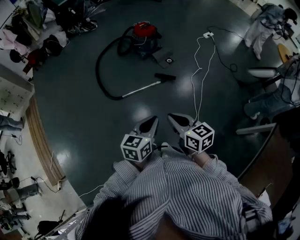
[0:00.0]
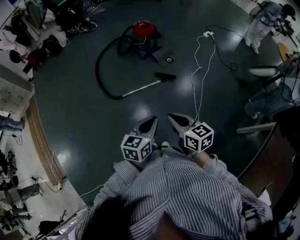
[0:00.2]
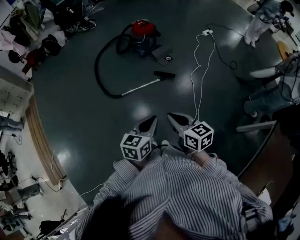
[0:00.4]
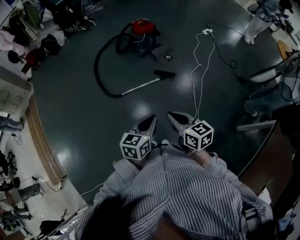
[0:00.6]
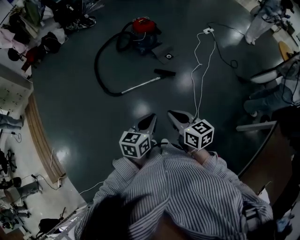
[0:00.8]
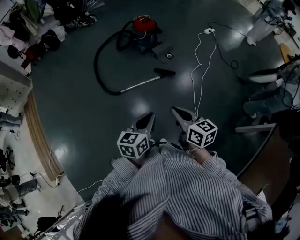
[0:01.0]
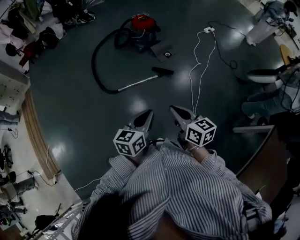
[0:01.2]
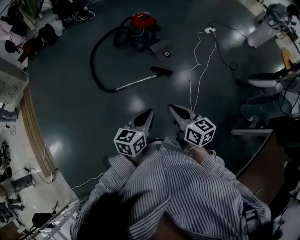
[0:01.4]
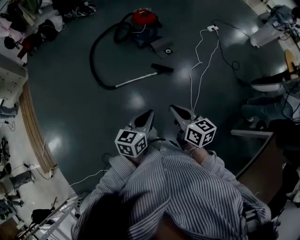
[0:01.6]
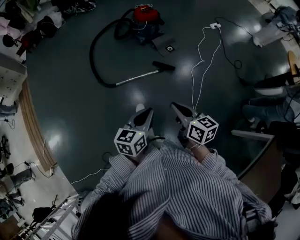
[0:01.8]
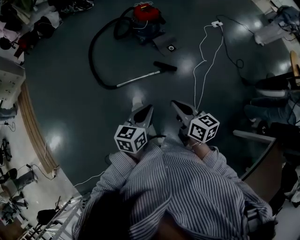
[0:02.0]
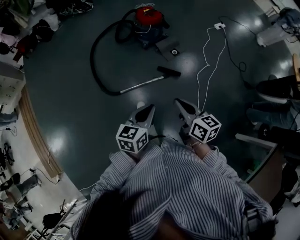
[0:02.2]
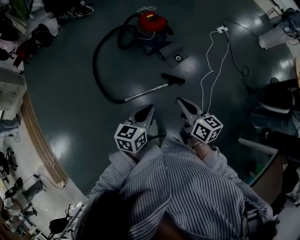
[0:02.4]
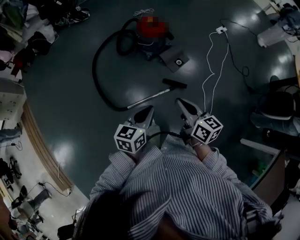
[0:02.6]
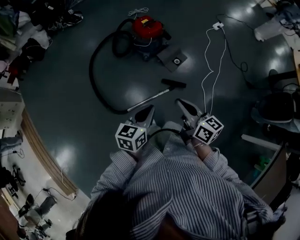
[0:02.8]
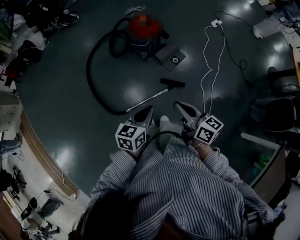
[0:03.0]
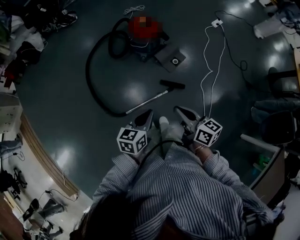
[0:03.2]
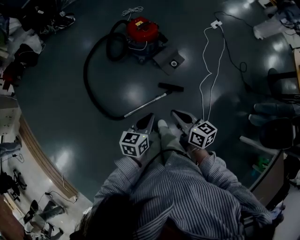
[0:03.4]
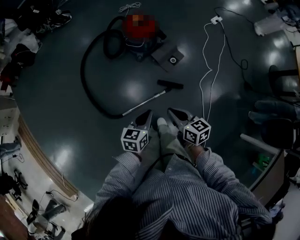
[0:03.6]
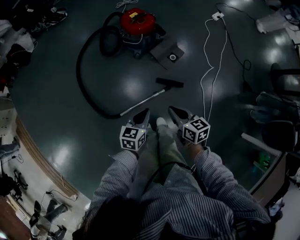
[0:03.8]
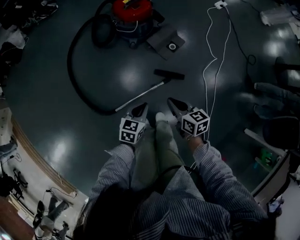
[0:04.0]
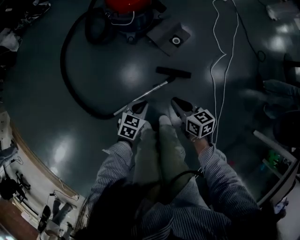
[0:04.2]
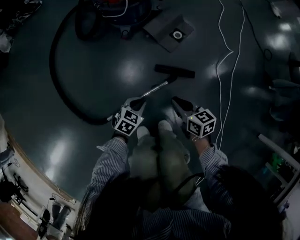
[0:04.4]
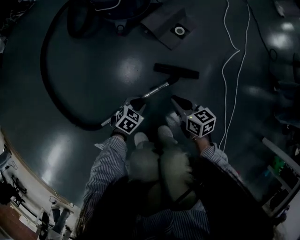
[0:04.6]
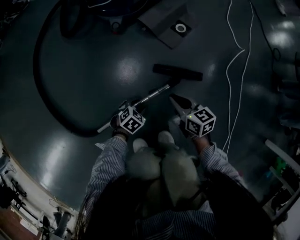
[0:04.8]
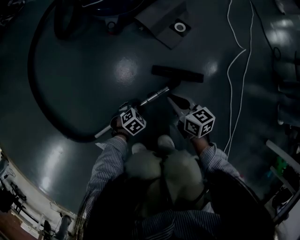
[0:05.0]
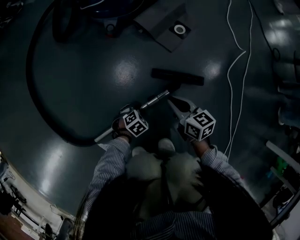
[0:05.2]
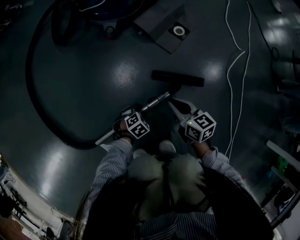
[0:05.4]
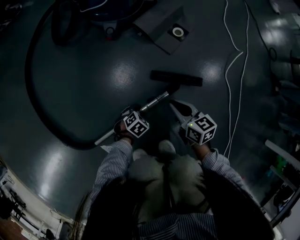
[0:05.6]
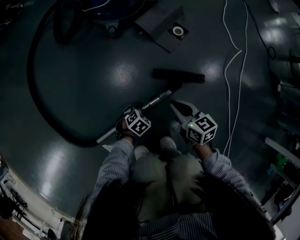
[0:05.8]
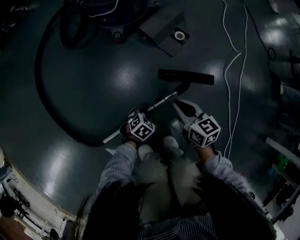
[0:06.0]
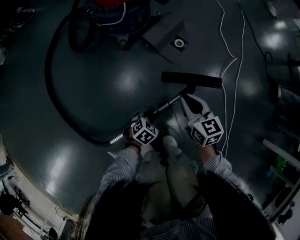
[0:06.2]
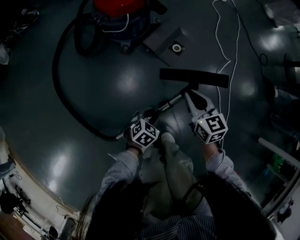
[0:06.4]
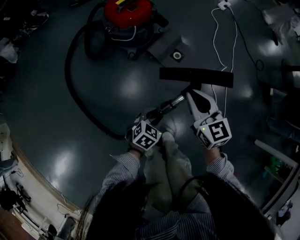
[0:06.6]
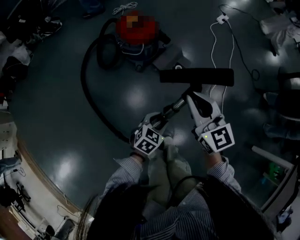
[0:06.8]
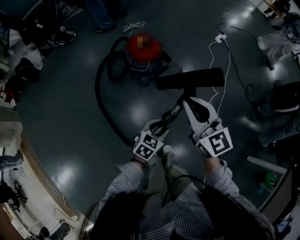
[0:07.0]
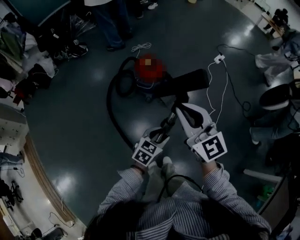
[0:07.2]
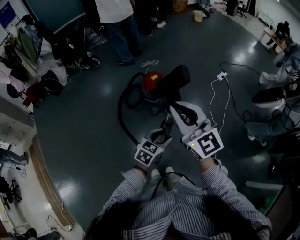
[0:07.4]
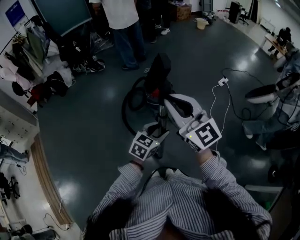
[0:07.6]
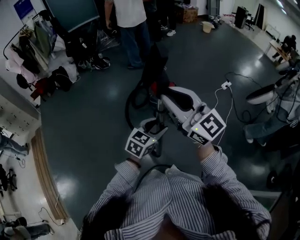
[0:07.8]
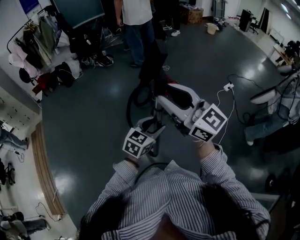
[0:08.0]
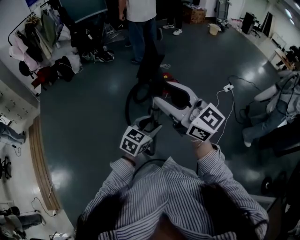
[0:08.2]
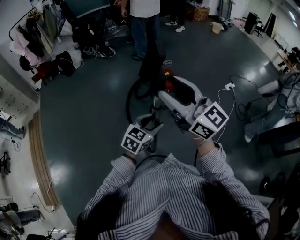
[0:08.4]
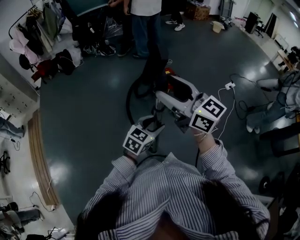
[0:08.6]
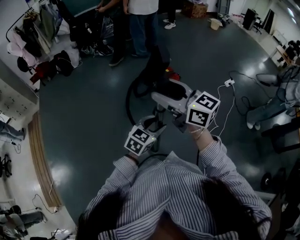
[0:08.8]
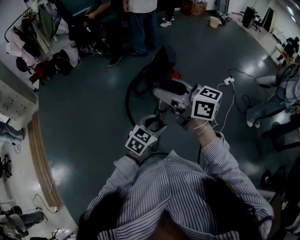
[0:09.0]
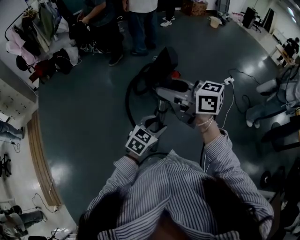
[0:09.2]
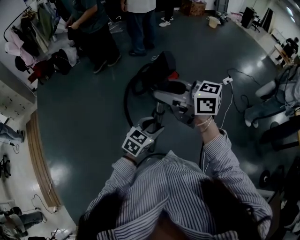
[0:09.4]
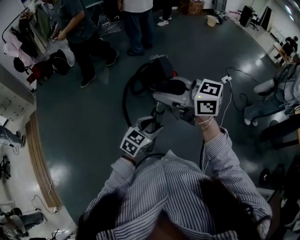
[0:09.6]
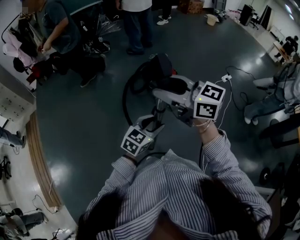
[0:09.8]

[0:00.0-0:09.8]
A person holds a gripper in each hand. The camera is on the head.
0:00.0 to 0:01.4: The left gripper heads forward, covering some 5 cm. Meanwhile the right gripper goes approximately 10 cm forward and to the right.
0:01.4 to 0:02.8: Both grippers travel together forward, approximately 35 cm.
0:02.8 to 0:04.2: The grippers both shift downward by approximately 40 cm. The left gripper changes its angle by roughly 30 degrees. The right gripper changes its angle by some 20 degrees.
0:04.2 to 0:05.6: Both grippers move downward, about 35 cm. The left gripper changes its angle by roughly 30 degrees, and opens its fingers.
0:05.6 to 0:07.0: Both grippers move upward, some 70 cm. The left gripper swivels some 30 degrees, while the right gripper turns by approximately 40 degrees.
0:07.0 to 0:08.4: The two grippers go roughly 30 cm upward. The left gripper rotates roughly 30 degrees, while the right gripper swivels approximately 40 degrees, and opens its fingers.
0:08.4 to 0:09.8: The right gripper turns by roughly 20 degrees.

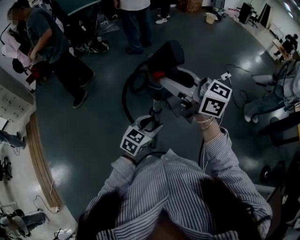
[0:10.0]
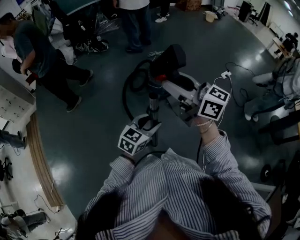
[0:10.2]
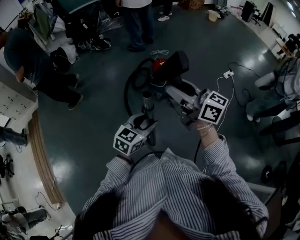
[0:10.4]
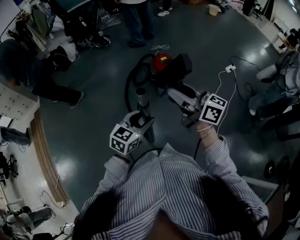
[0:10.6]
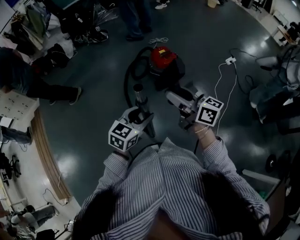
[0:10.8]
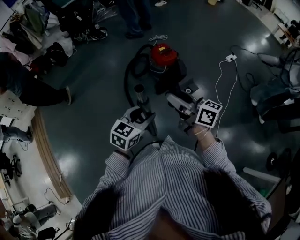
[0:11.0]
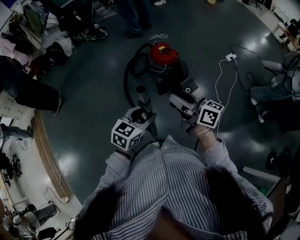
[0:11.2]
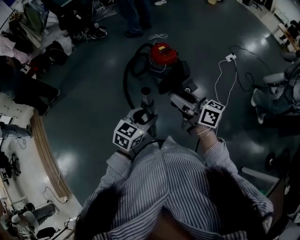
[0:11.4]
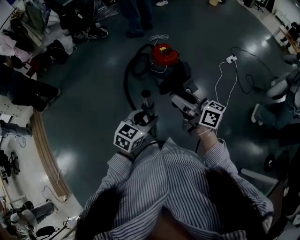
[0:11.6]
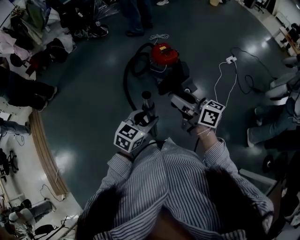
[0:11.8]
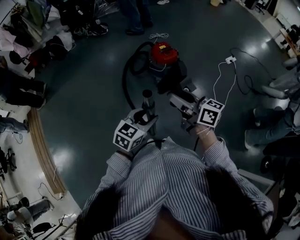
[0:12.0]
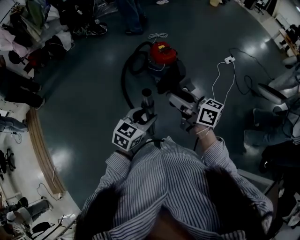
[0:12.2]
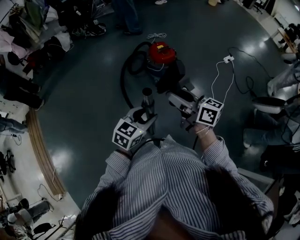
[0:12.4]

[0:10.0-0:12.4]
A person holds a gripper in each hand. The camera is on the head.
0:10.0 to 0:11.2: The right gripper shifts approximately 20 cm downward, and swivels some 30 degrees.
0:11.2 to 0:12.4: The grippers move only a little.

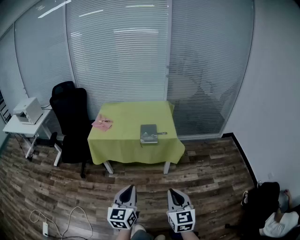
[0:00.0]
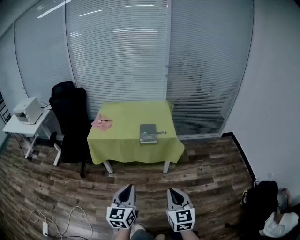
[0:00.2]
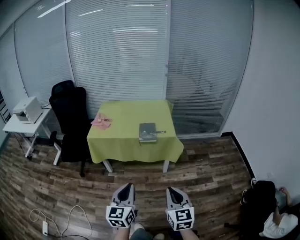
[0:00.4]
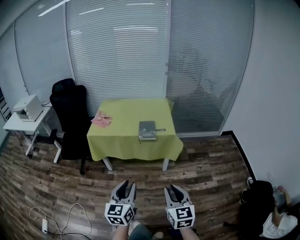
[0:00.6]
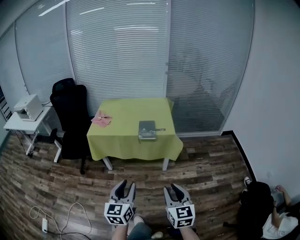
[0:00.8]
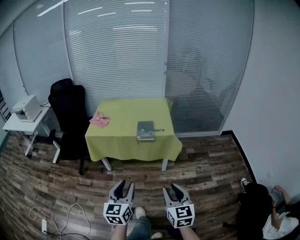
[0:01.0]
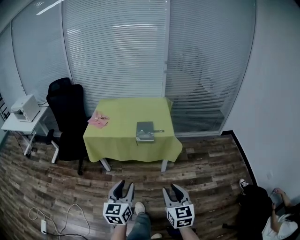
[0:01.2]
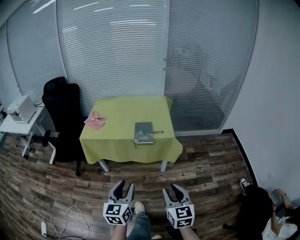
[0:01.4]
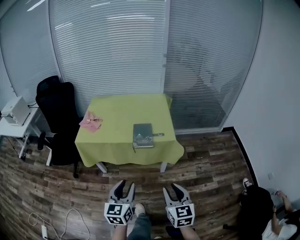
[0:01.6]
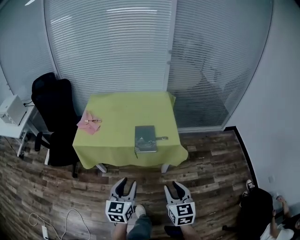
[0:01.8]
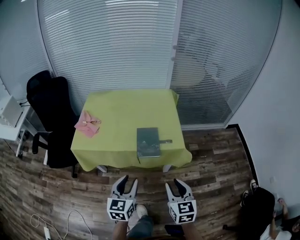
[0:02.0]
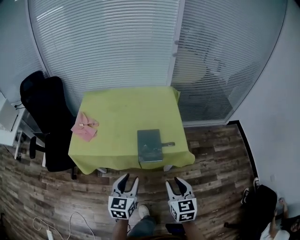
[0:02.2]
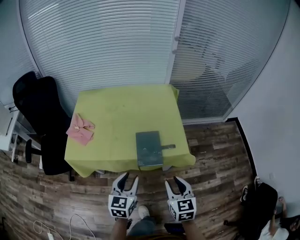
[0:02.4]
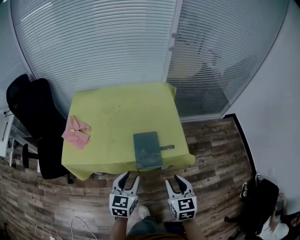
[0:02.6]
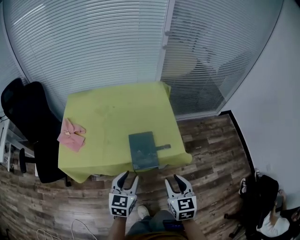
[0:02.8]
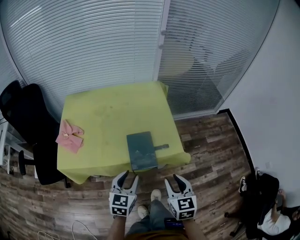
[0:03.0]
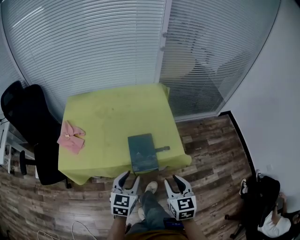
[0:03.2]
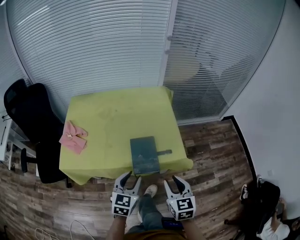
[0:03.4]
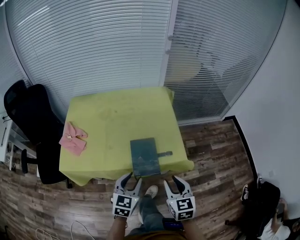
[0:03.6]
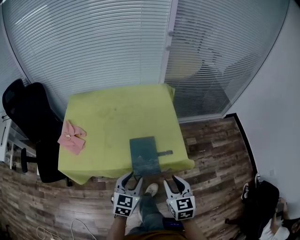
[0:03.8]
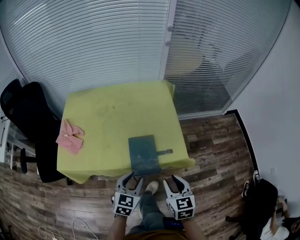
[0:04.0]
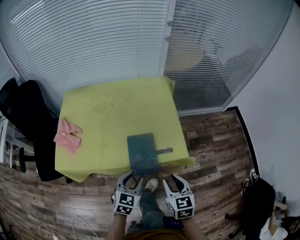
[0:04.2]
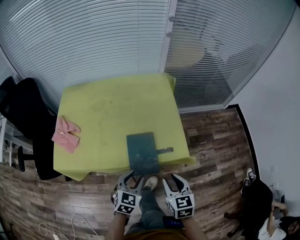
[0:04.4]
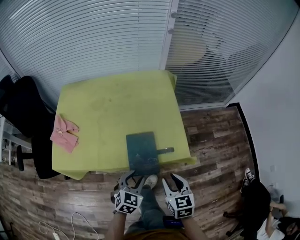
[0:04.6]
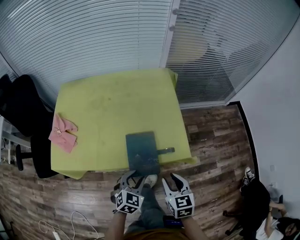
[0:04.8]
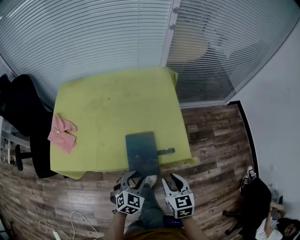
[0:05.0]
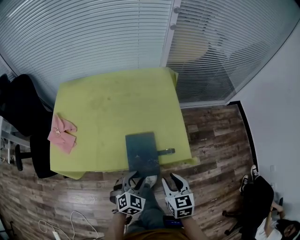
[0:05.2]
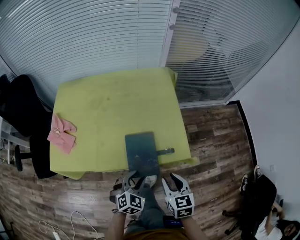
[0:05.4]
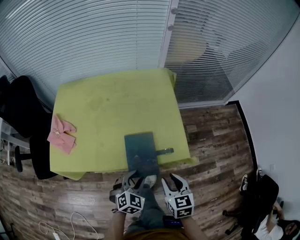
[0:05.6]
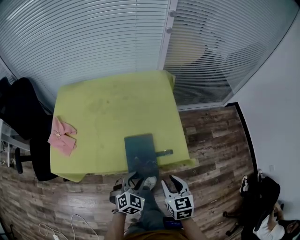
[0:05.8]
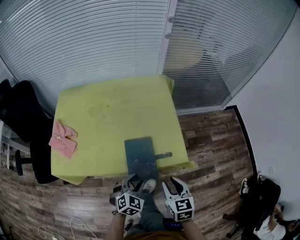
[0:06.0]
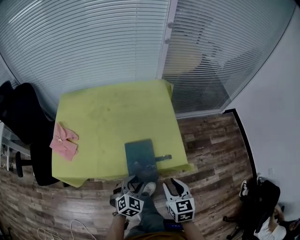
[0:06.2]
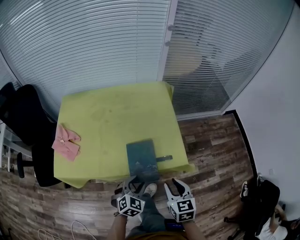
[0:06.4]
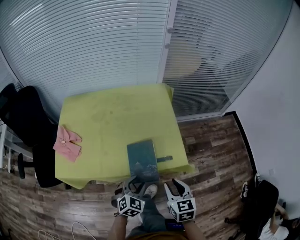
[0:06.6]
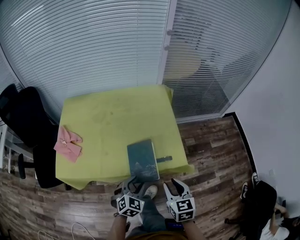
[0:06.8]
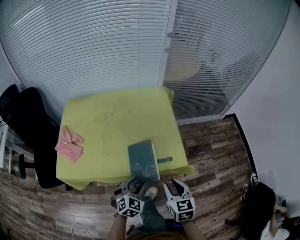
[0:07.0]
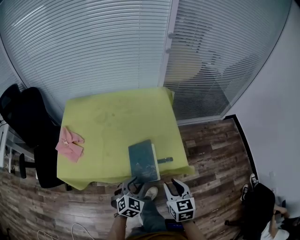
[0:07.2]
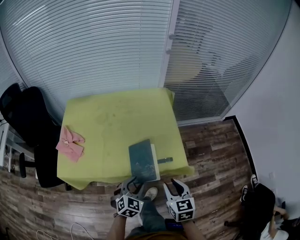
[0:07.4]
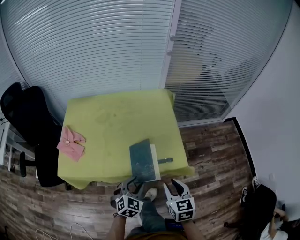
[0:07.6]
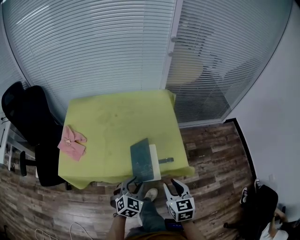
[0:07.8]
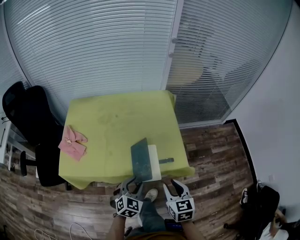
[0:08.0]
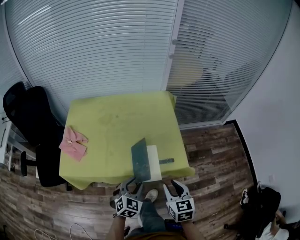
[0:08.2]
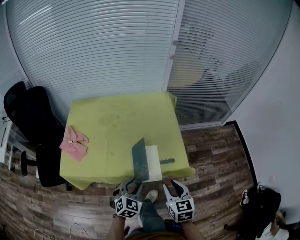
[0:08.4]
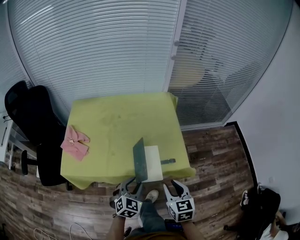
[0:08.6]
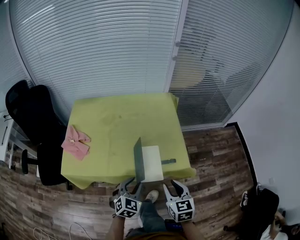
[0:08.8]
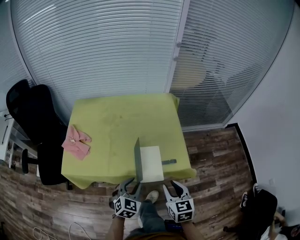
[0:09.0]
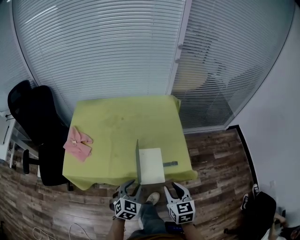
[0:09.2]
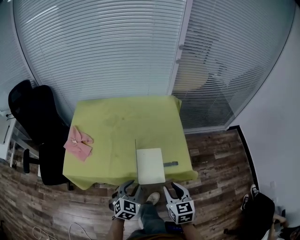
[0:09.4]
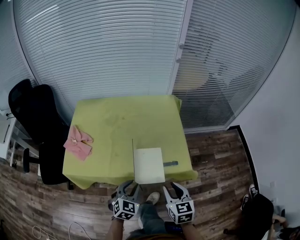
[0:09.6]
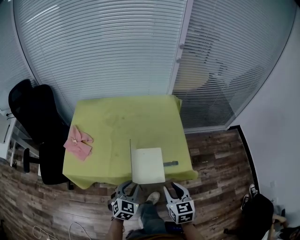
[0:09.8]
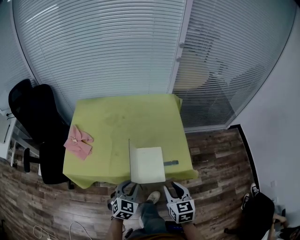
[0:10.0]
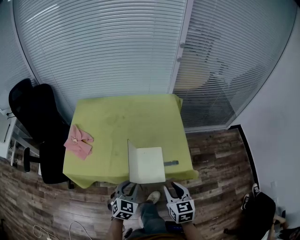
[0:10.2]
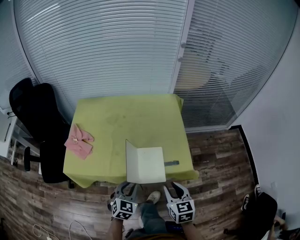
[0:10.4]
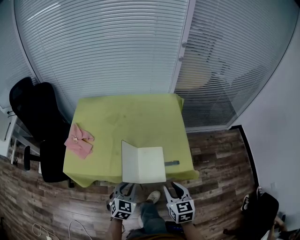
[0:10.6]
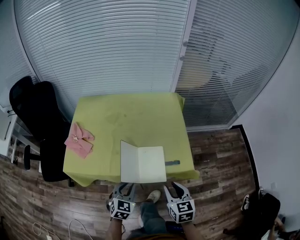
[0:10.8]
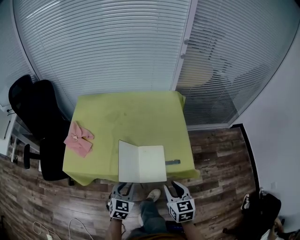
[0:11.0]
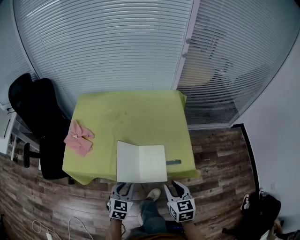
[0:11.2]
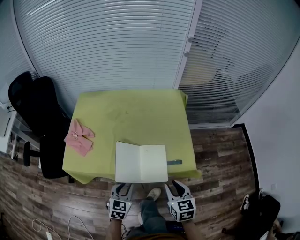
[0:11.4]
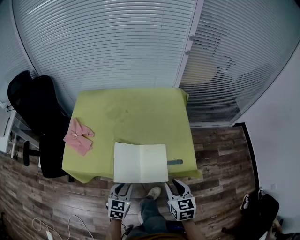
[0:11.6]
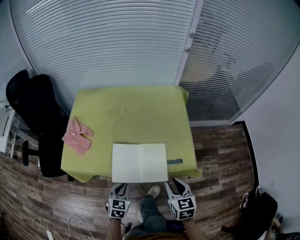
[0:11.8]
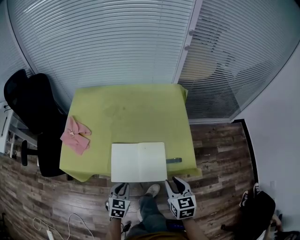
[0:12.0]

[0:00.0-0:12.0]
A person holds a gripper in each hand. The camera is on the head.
0:00.0 to 0:01.6: The two grippers go some 15 cm forward. The right gripper opens; the left gripper opens its fingers.
0:01.6 to 0:03.0: Both grippers travel together forward, approximately 25 cm. The left gripper rotates approximately 20 degrees.
0:03.0 to 0:04.4: The left gripper moves downward, approximately 10 cm. The right gripper heads downward and forward, covering roughly 10 cm.
0:04.4 to 0:09.0: There are only small adjustments of the grippers.
0:09.0 to 0:10.4: The grippers stay close to where they were, moving slightly.
0:10.4 to 0:12.0: The left gripper goes approximately 5 cm downward.
